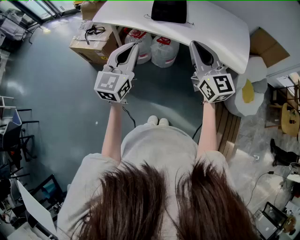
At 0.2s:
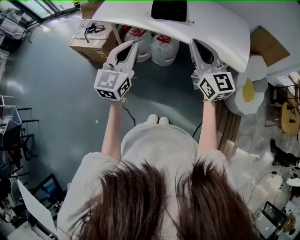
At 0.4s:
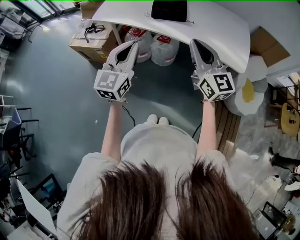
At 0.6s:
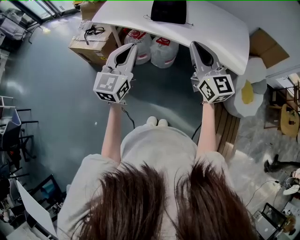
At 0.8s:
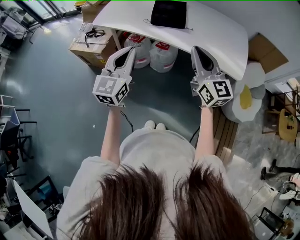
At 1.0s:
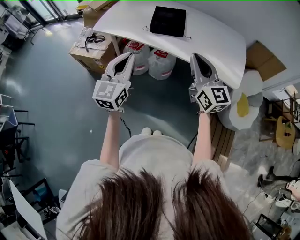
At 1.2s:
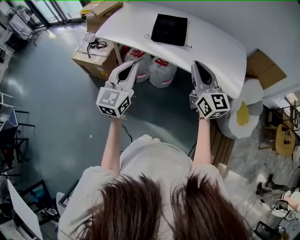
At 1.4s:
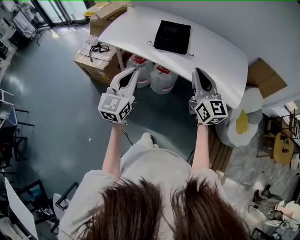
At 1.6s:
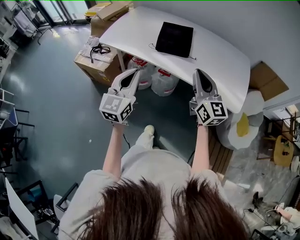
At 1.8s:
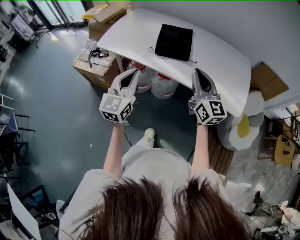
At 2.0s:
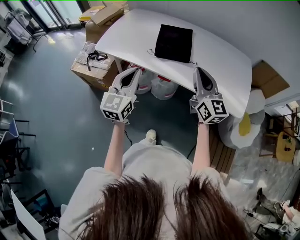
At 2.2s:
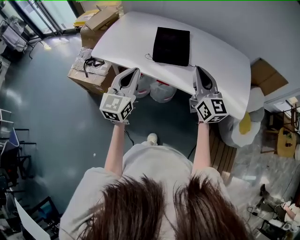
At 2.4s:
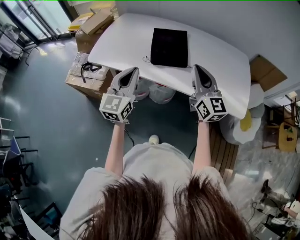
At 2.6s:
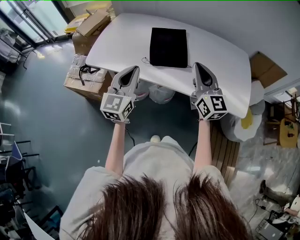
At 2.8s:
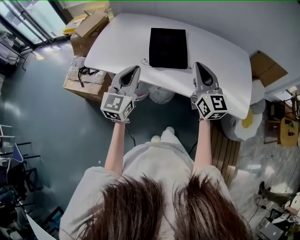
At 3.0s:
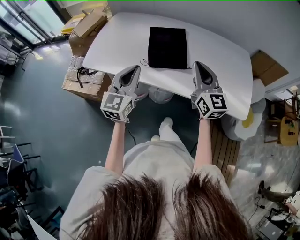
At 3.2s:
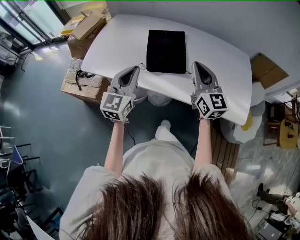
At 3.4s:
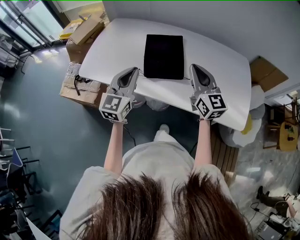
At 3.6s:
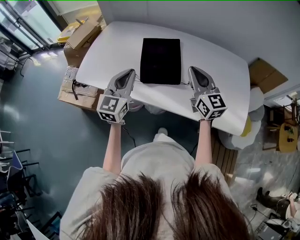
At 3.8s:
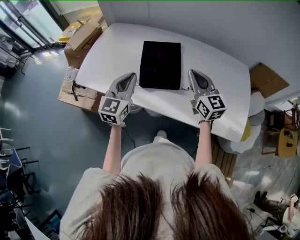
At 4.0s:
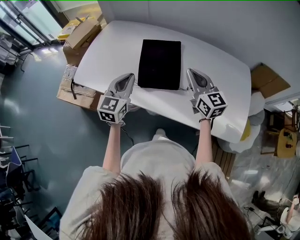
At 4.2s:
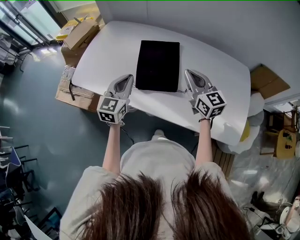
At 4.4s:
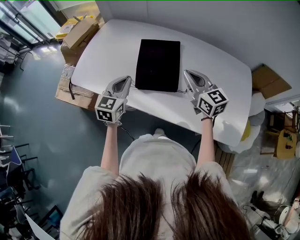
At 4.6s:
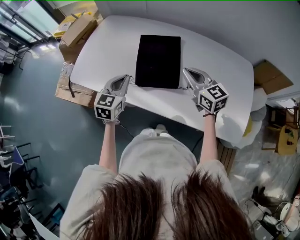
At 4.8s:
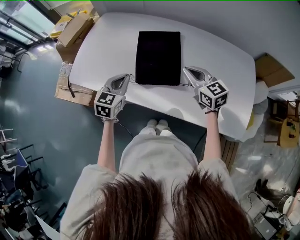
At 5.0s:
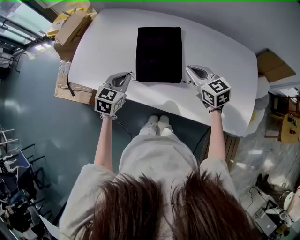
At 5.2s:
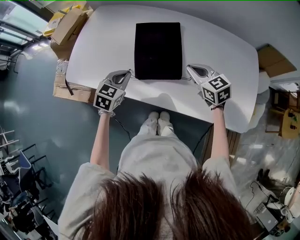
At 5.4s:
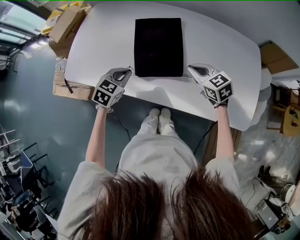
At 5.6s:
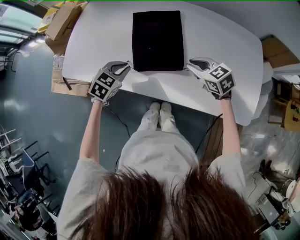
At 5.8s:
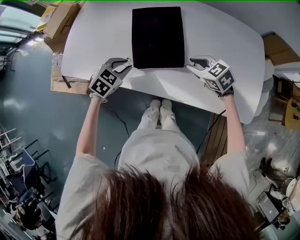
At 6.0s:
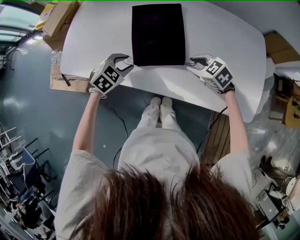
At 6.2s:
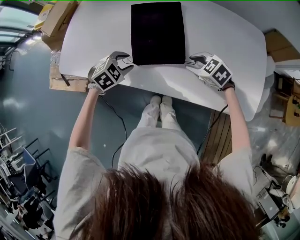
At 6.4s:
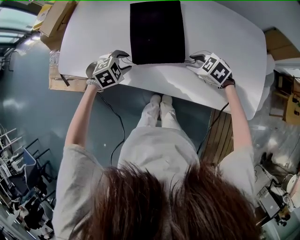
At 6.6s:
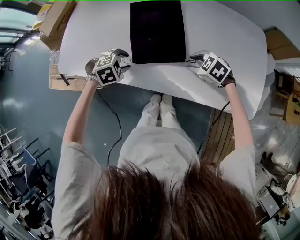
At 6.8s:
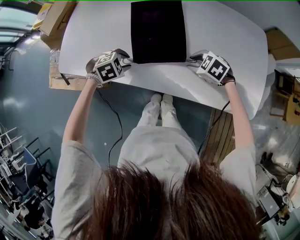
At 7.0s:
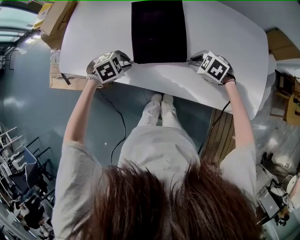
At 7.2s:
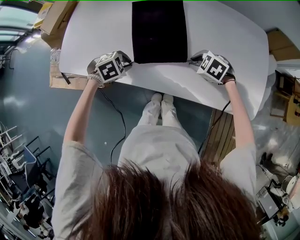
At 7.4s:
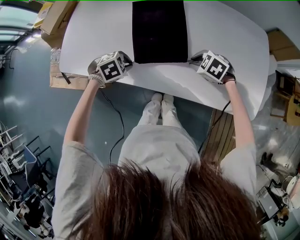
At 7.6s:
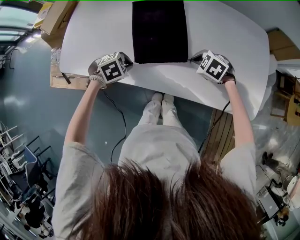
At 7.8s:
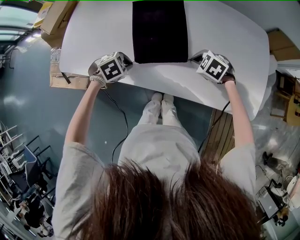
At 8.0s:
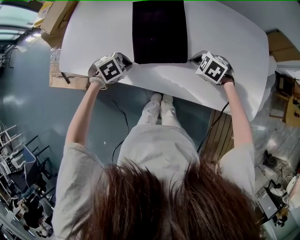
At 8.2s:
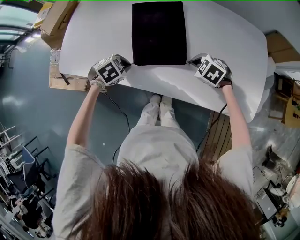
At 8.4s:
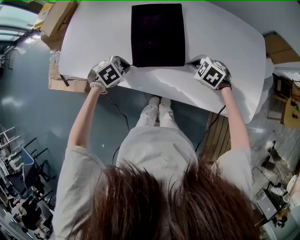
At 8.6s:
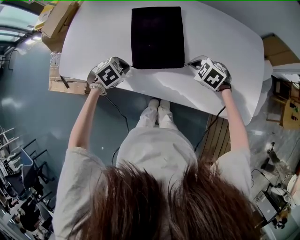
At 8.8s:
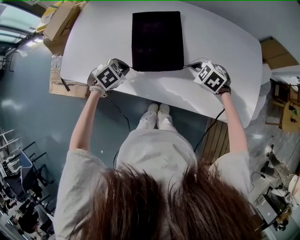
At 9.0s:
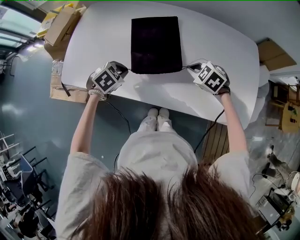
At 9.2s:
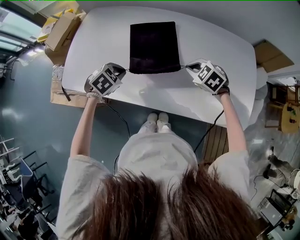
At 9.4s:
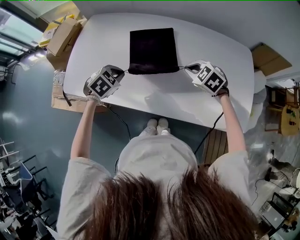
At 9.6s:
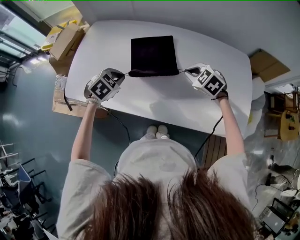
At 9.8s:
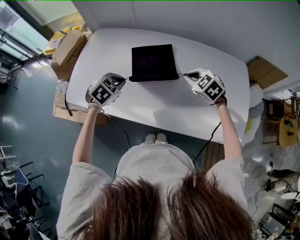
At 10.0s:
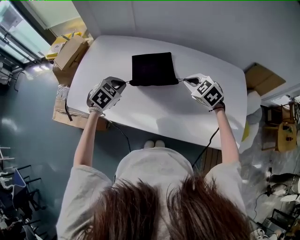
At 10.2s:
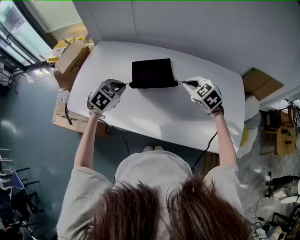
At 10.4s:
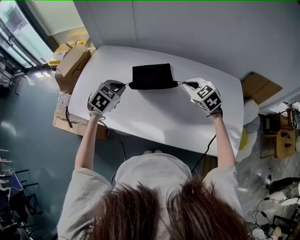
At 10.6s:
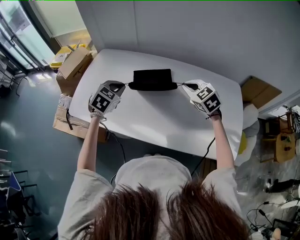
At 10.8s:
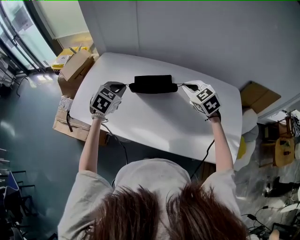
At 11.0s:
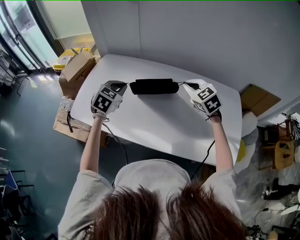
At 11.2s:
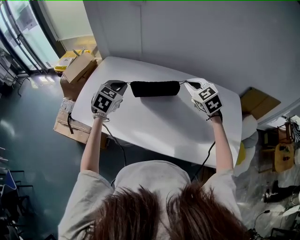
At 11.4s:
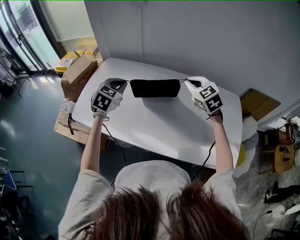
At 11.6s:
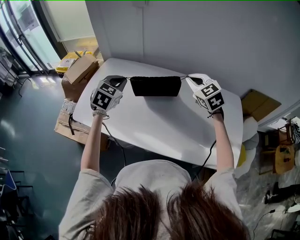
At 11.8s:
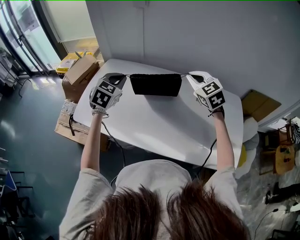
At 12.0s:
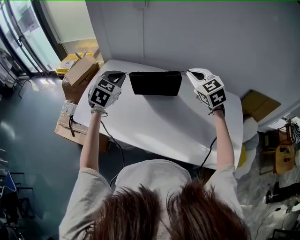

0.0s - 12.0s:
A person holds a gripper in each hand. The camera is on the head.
0.0s - 1.6s: The two grippers go approximately 10 cm forward.
1.6s - 3.0s: The grippers both shift forward by about 20 cm.
3.0s - 4.4s: Both grippers move forward and downward, about 15 cm. The right gripper changes its angle by some 20 degrees.
4.4s - 6.0s: The grippers both shift downward by roughly 15 cm. The right gripper tips its fingers downward by roughly 40 degrees, and opens its fingers. Meanwhile the left gripper tilts its fingers some 40 degrees downward, and opens its fingers.
6.0s - 7.6s: The left gripper changes its angle by about 30 degrees, and closes. The right gripper closes up.
7.6s - 9.0s: The right gripper goes approximately 5 cm upward, while the left gripper shifts by roughly 5 cm.
9.0s - 10.4s: Both grippers travel together upward and forward, some 15 cm. The left gripper swivels roughly 20 degrees. The right gripper changes its angle by approximately 20 degrees.
10.4s - 12.0s: Both grippers travel together upward, roughly 15 cm. The left gripper turns by roughly 20 degrees.

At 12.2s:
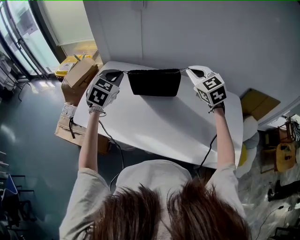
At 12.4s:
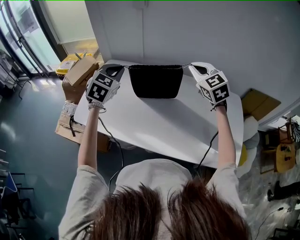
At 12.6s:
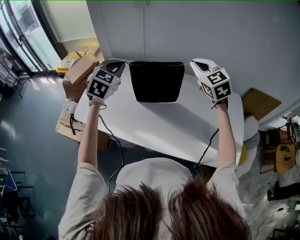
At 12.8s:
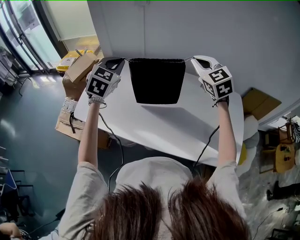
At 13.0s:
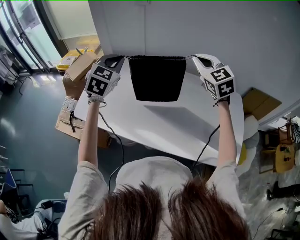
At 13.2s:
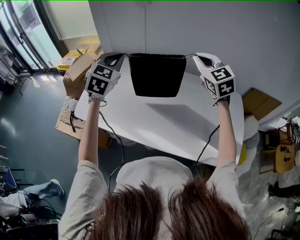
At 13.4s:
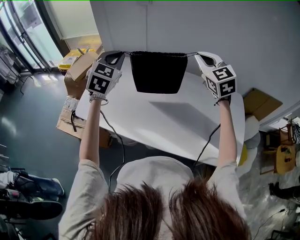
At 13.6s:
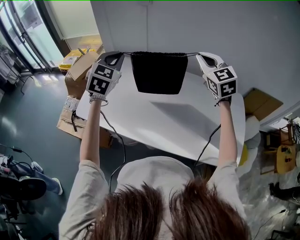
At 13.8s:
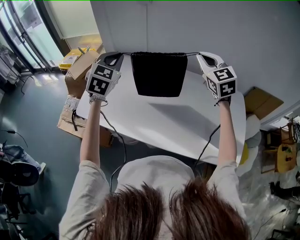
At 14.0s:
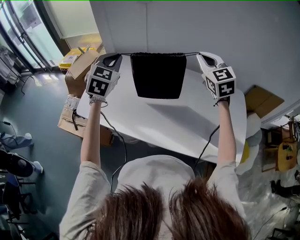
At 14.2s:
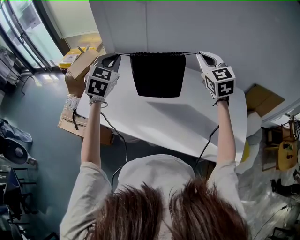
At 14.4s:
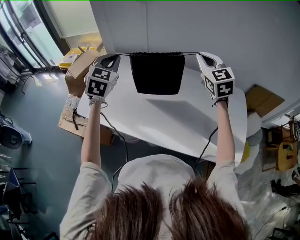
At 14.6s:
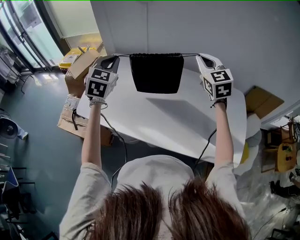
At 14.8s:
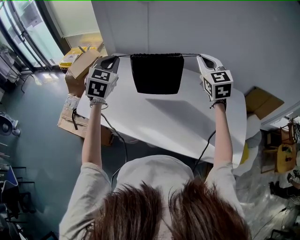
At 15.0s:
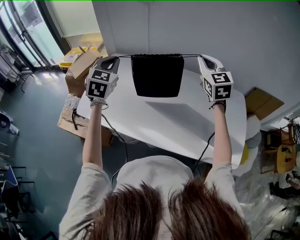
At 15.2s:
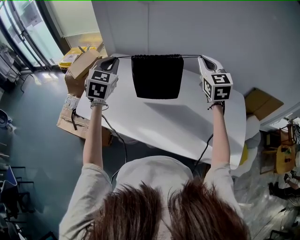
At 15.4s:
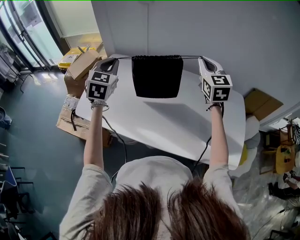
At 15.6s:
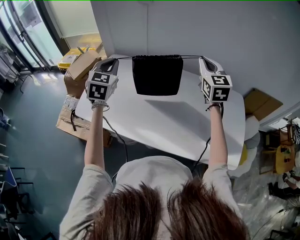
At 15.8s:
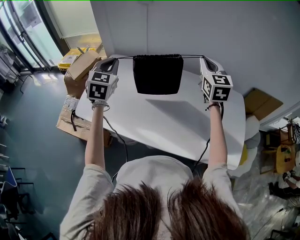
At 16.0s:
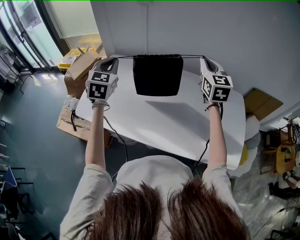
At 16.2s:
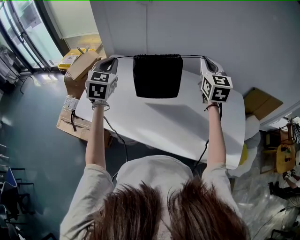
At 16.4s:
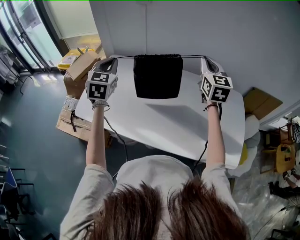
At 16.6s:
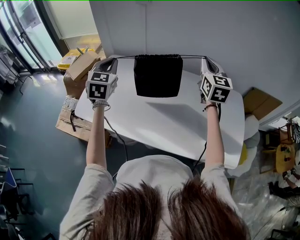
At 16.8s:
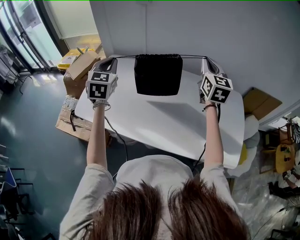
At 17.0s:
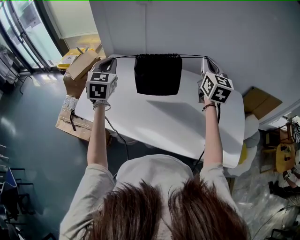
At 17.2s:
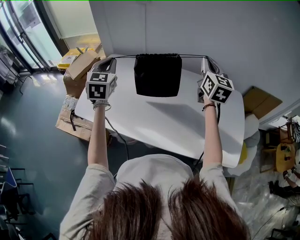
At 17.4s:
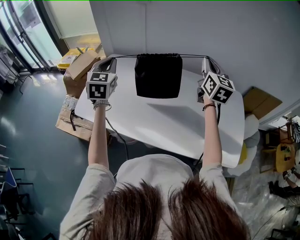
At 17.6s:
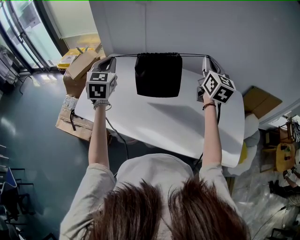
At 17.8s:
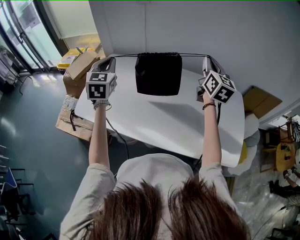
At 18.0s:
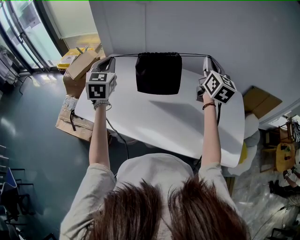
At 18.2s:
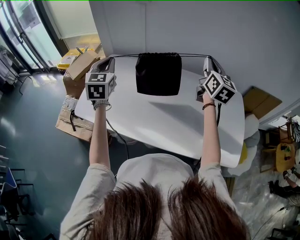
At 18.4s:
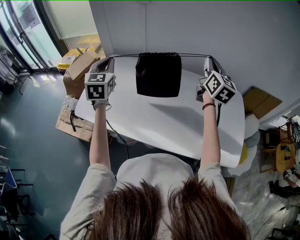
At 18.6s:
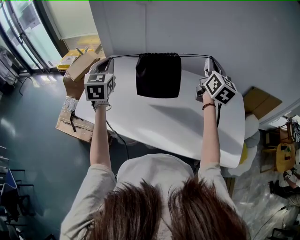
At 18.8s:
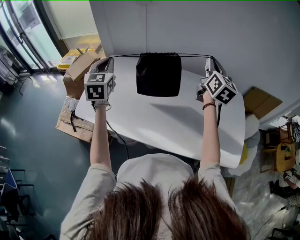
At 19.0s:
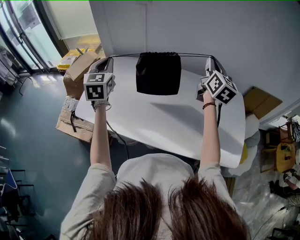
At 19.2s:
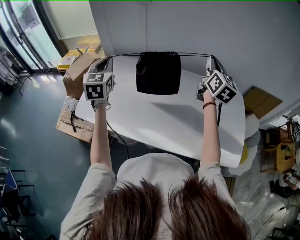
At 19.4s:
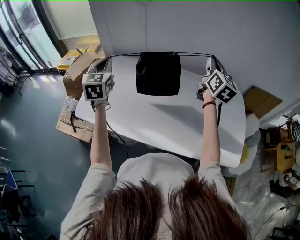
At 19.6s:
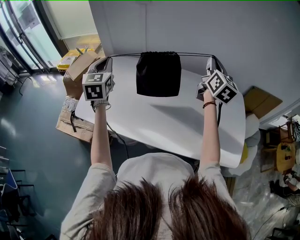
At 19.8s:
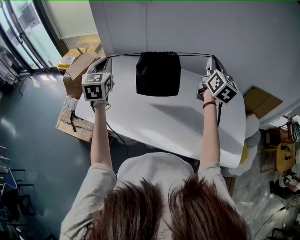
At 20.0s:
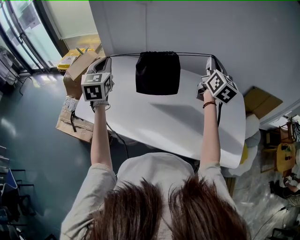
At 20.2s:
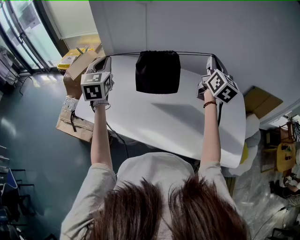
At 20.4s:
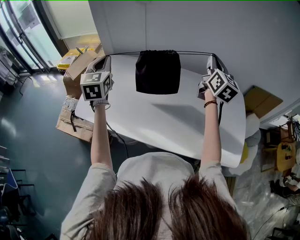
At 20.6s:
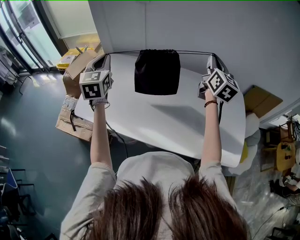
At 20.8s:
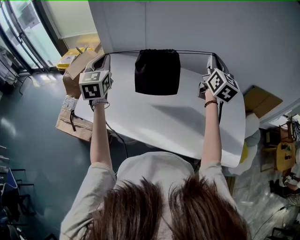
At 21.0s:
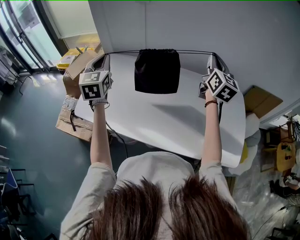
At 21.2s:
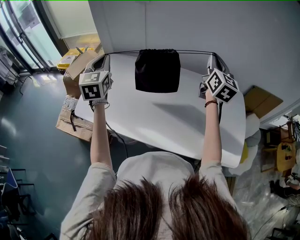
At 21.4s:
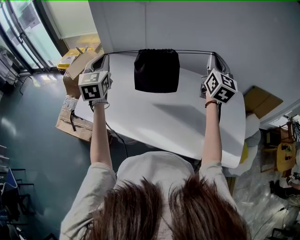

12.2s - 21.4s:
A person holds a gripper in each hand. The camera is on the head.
12.2s - 13.8s: Both grippers travel together upward, approximately 5 cm.
13.8s - 15.2s: There are only small adjustments of the grippers.
15.2s - 16.8s: The grippers move only a little.
16.8s - 18.4s: The grippers stay close to where they were, moving slightly.
18.4s - 19.8s: Both grippers stay about where they are.
19.8s - 21.4s: The grippers make only small movements.

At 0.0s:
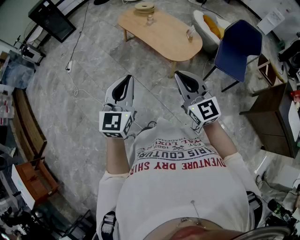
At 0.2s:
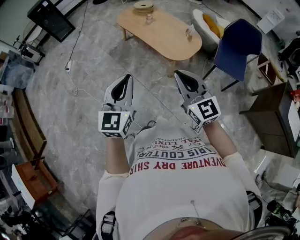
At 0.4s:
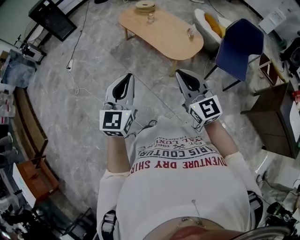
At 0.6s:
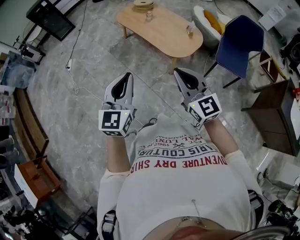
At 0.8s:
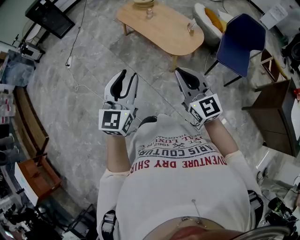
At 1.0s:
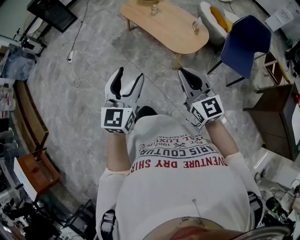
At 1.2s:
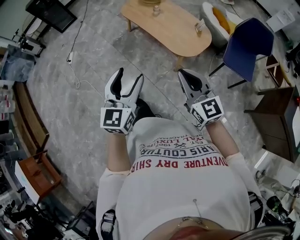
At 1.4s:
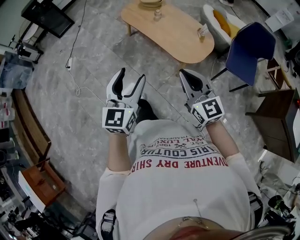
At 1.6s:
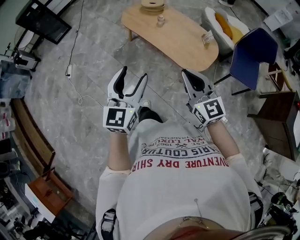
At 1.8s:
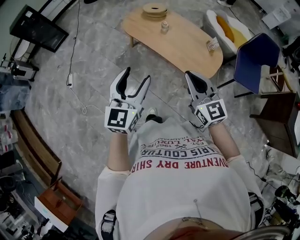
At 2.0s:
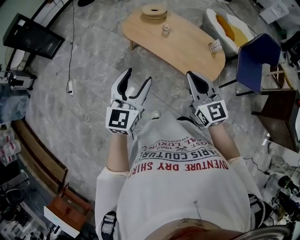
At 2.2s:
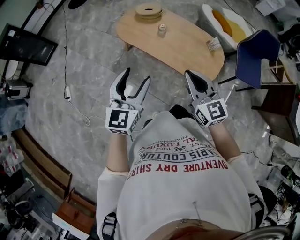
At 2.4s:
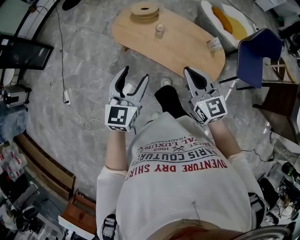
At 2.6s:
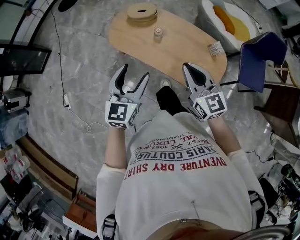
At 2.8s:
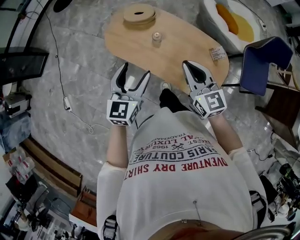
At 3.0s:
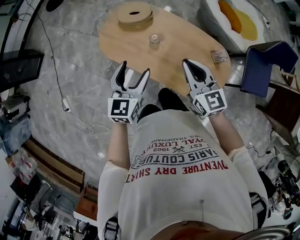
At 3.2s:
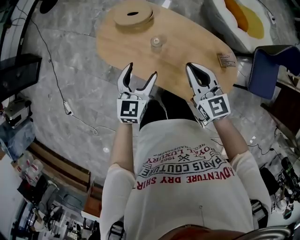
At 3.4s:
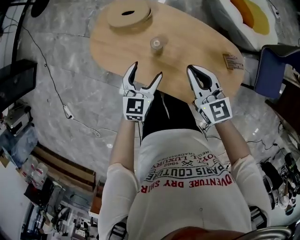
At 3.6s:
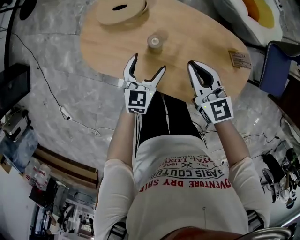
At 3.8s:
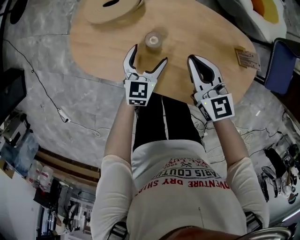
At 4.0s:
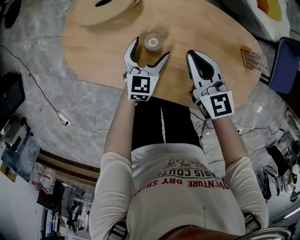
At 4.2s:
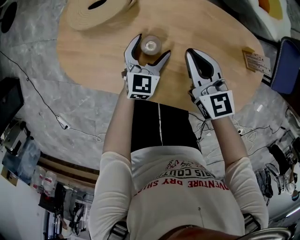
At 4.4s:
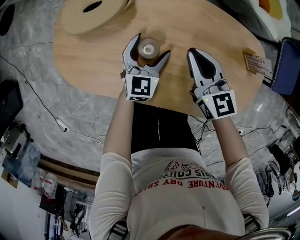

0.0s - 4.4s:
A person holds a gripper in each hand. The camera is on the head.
0.0s - 1.4s: Both grippers travel together forward, about 15 cm. The left gripper opens up.
1.4s - 3.0s: The two grippers travel together, forward, roughly 60 cm. The right gripper rotates roughly 20 degrees. Meanwhile the left gripper turns by roughly 20 degrees.
3.0s - 4.4s: Both grippers travel together downward and forward, some 40 cm. The left gripper swivels some 20 degrees.
